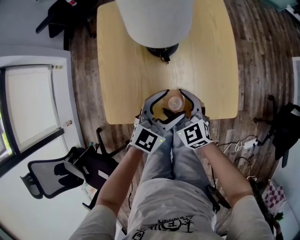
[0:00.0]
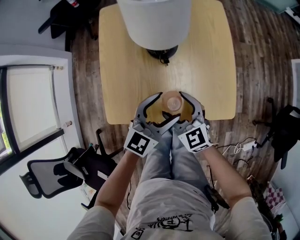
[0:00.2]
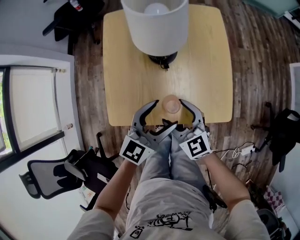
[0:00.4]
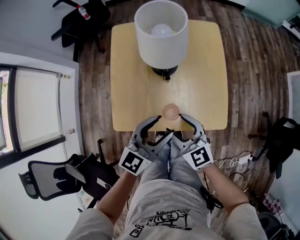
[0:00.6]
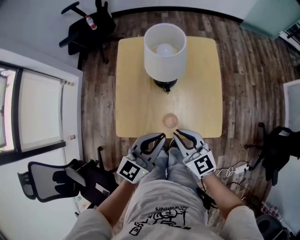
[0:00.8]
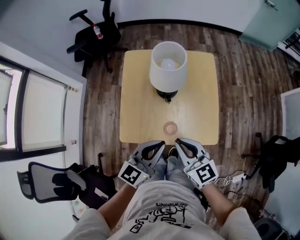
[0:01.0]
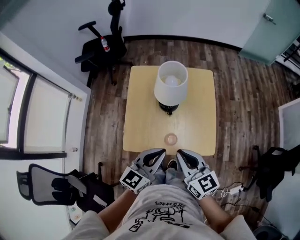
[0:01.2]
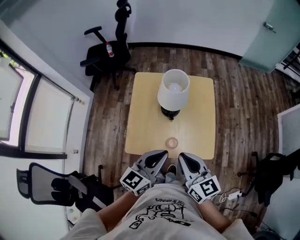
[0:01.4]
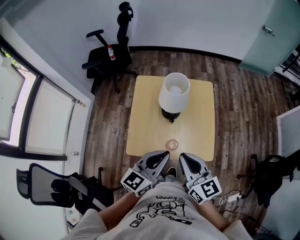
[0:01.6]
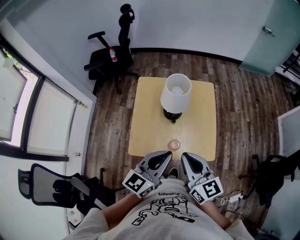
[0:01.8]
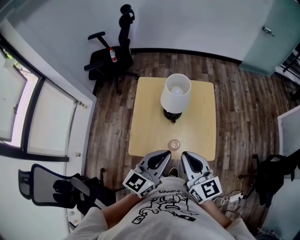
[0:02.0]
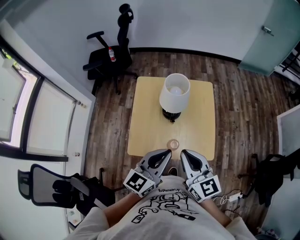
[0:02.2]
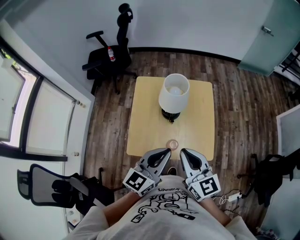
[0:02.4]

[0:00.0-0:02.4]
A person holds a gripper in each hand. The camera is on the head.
0:00.0 to 0:01.2: Both grippers move upward, approximately 25 cm. The left gripper turns by approximately 20 degrees, and closes. Meanwhile the right gripper turns by roughly 30 degrees, and closes its fingers.
0:01.2 to 0:02.4: Both grippers move upward, about 10 cm.

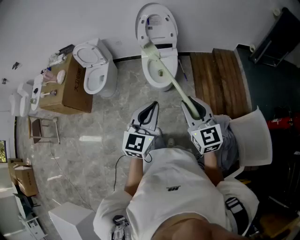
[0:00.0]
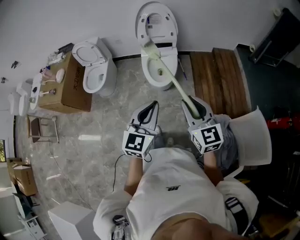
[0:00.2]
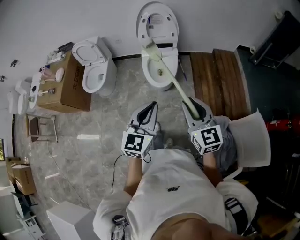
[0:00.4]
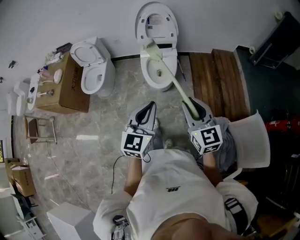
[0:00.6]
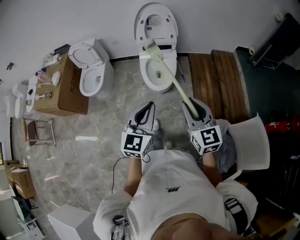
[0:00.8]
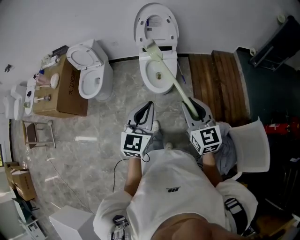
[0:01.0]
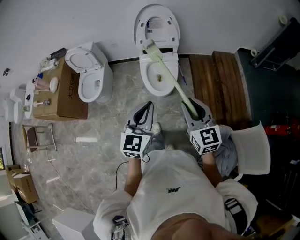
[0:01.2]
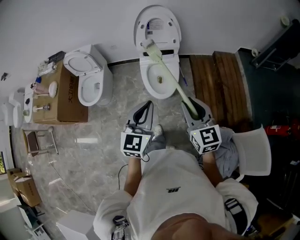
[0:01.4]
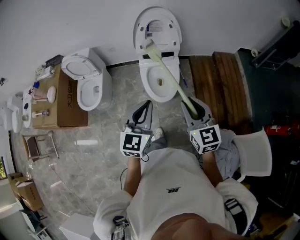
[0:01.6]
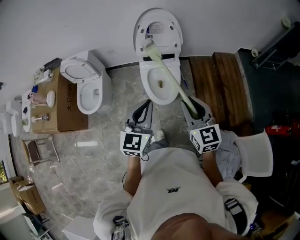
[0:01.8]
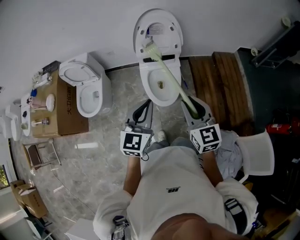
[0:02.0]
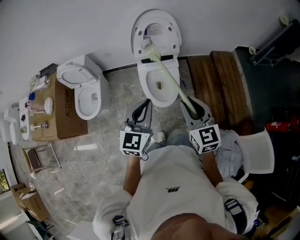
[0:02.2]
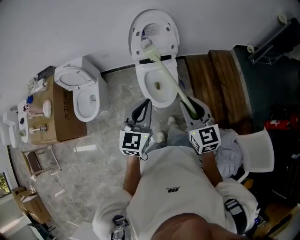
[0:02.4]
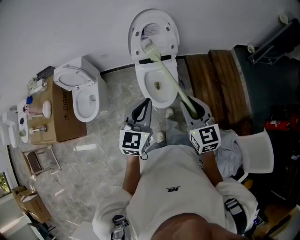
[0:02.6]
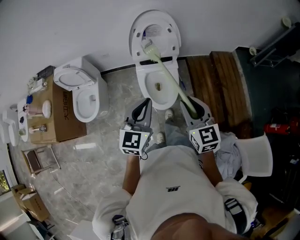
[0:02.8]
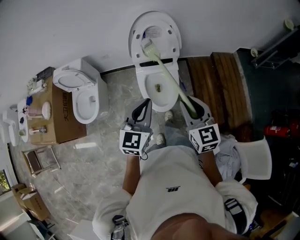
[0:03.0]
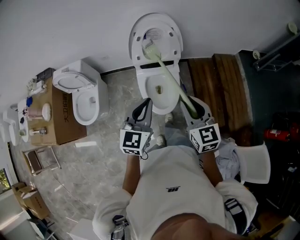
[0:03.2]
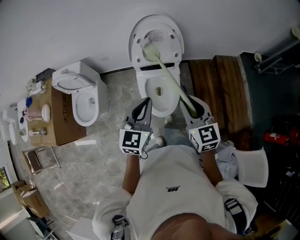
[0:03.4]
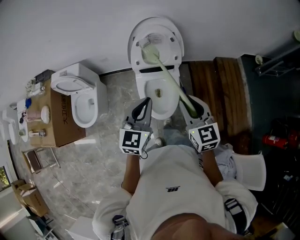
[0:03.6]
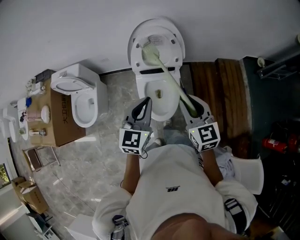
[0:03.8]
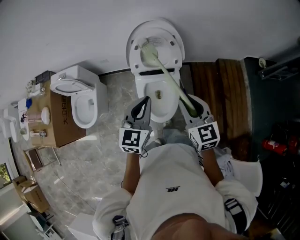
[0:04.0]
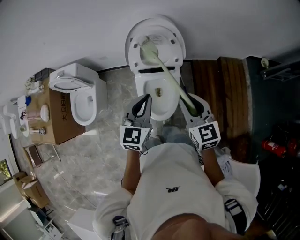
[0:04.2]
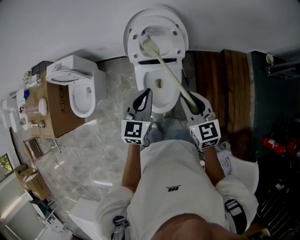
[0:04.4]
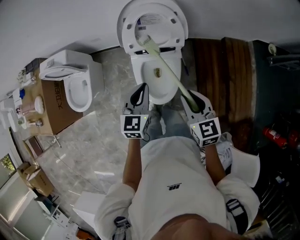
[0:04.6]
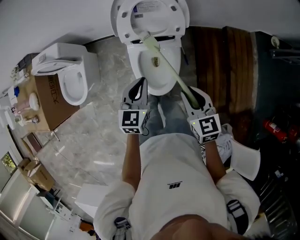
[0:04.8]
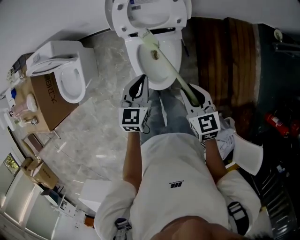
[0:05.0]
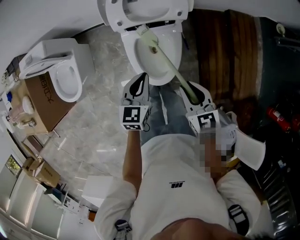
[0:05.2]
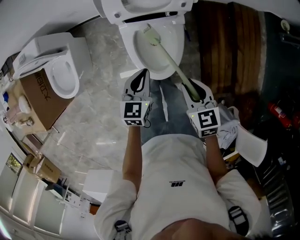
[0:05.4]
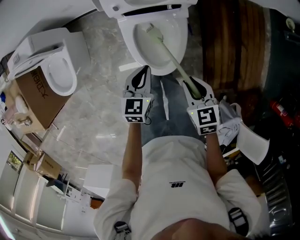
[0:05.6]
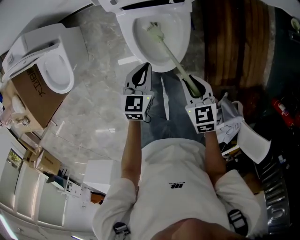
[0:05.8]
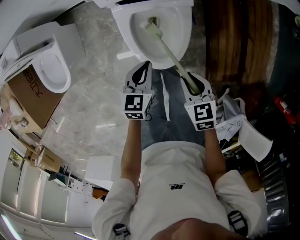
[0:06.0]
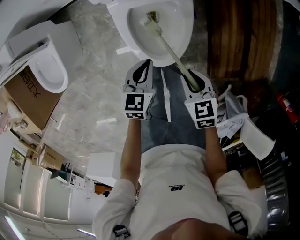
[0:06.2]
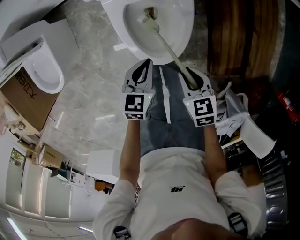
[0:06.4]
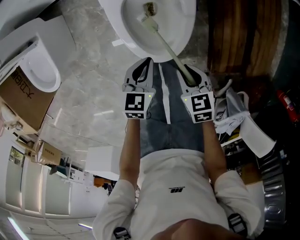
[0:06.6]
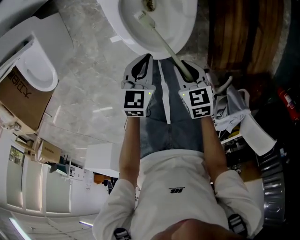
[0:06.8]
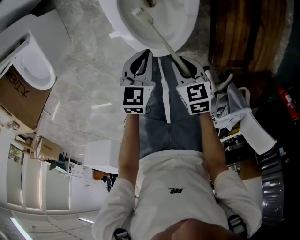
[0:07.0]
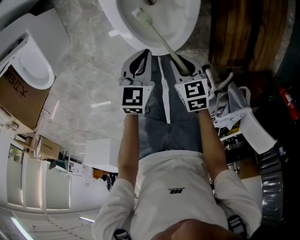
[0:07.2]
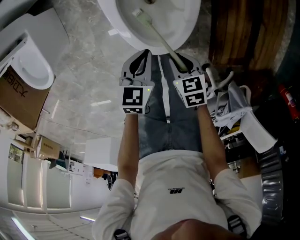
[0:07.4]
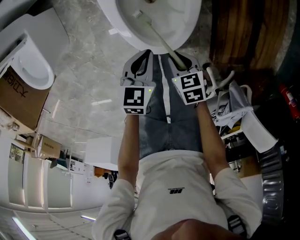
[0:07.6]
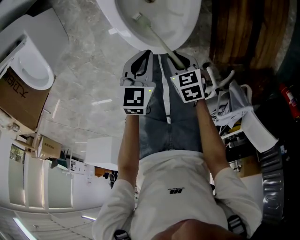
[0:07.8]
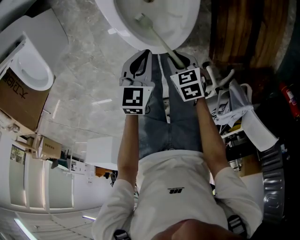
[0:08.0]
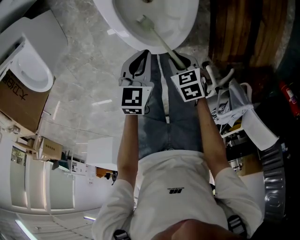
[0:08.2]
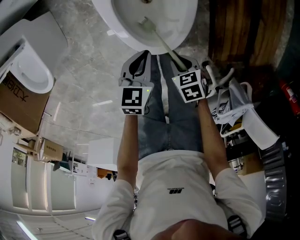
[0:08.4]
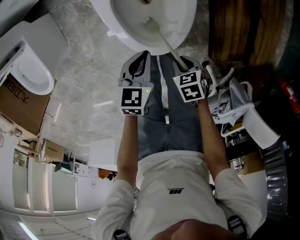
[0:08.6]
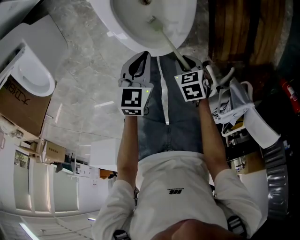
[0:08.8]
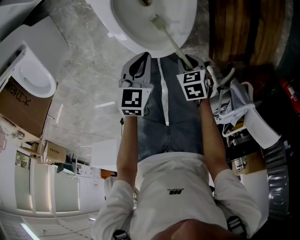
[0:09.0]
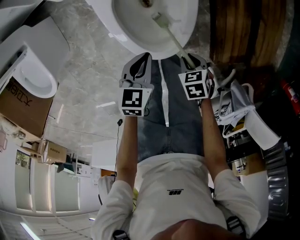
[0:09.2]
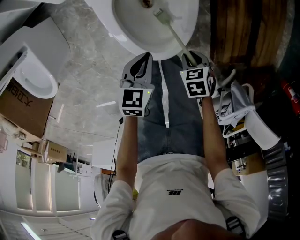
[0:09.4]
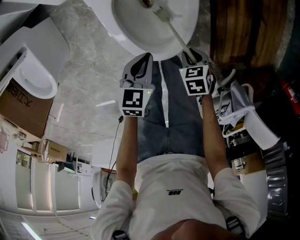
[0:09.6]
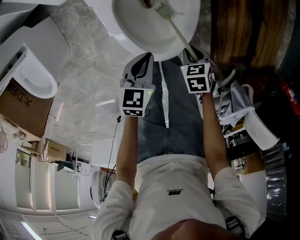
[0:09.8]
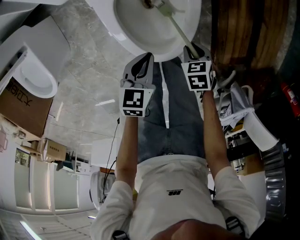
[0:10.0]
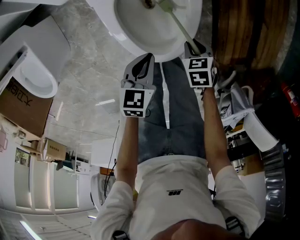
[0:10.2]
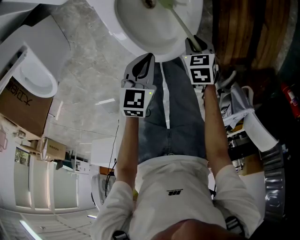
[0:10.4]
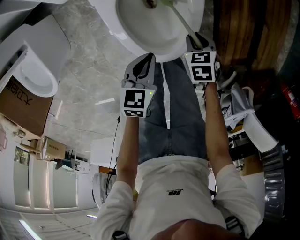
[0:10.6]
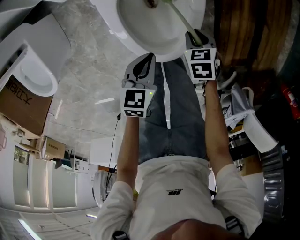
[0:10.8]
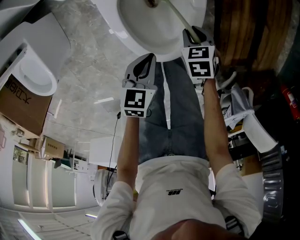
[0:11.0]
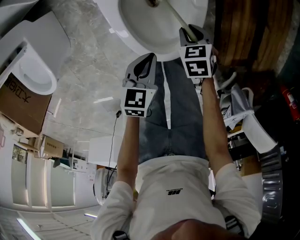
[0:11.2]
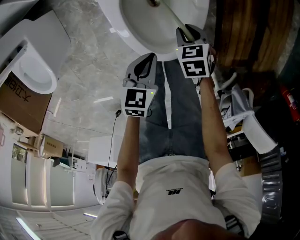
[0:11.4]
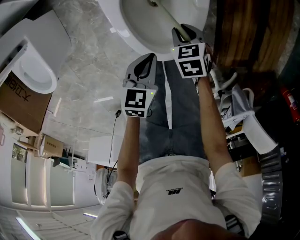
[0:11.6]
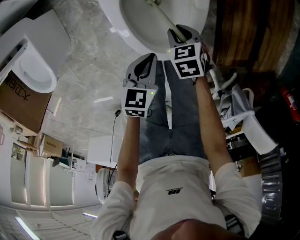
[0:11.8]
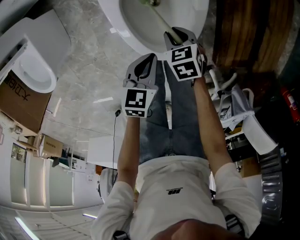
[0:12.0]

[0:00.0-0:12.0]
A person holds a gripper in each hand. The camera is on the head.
0:00.0 to 0:01.6: The right gripper moves forward, approximately 25 cm. Meanwhile the left gripper goes about 25 cm forward and to the left.
0:01.6 to 0:03.0: Both grippers move forward, about 15 cm.
0:03.0 to 0:04.4: The grippers both shift forward by roughly 20 cm.
0:04.4 to 0:06.0: The grippers both shift downward by roughly 35 cm. The right gripper tilts its fingers approximately 30 degrees downward. Meanwhile the left gripper changes its angle by some 30 degrees.
0:06.0 to 0:07.6: The left gripper moves downward, about 10 cm, while the right gripper shifts approximately 20 cm downward.
0:07.6 to 0:09.0: The right gripper moves roughly 5 cm.
0:09.0 to 0:10.4: The right gripper changes place by approximately 10 cm.
0:10.4 to 0:12.0: The right gripper ends up some 10 cm from where it was.

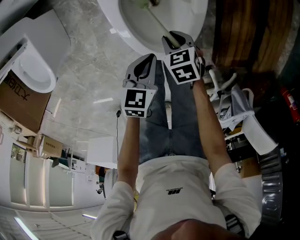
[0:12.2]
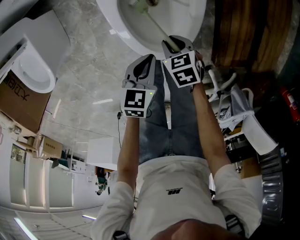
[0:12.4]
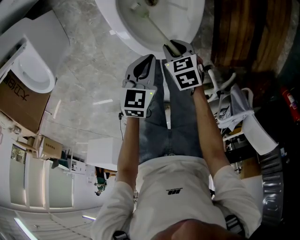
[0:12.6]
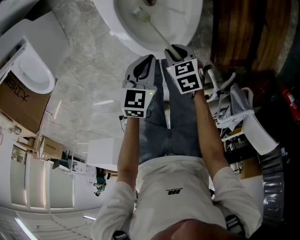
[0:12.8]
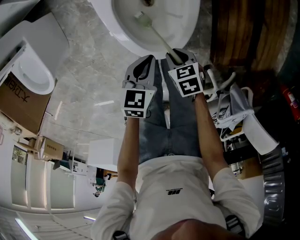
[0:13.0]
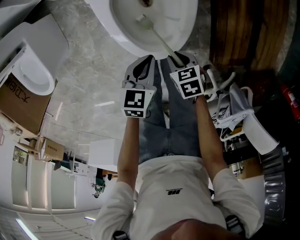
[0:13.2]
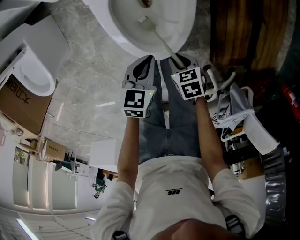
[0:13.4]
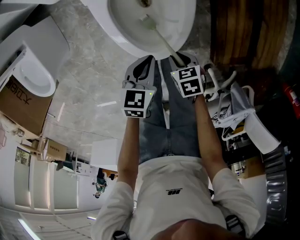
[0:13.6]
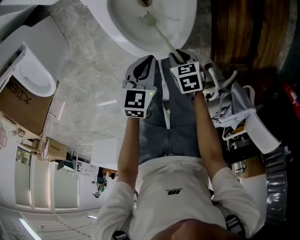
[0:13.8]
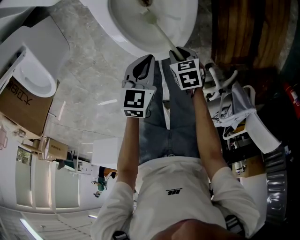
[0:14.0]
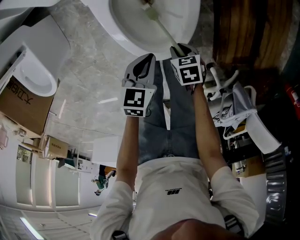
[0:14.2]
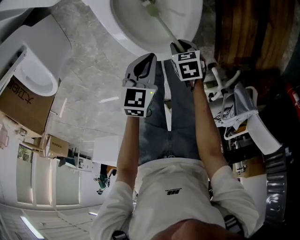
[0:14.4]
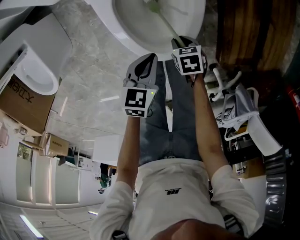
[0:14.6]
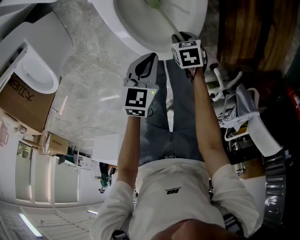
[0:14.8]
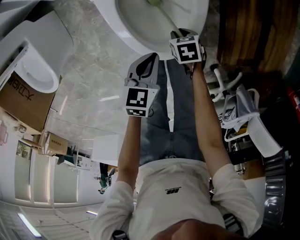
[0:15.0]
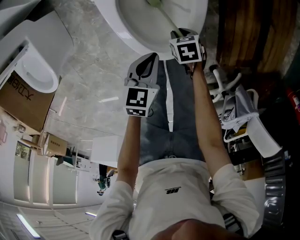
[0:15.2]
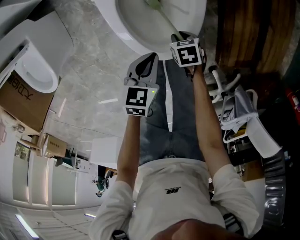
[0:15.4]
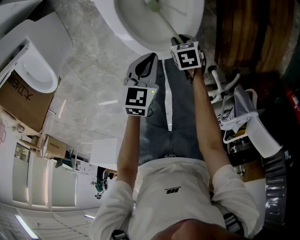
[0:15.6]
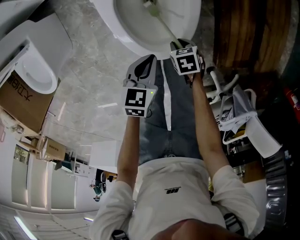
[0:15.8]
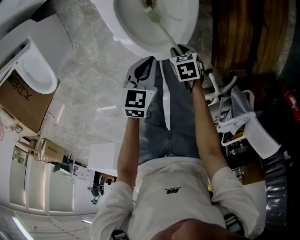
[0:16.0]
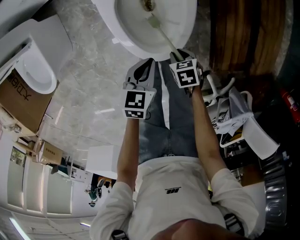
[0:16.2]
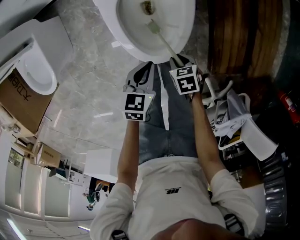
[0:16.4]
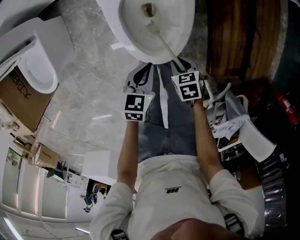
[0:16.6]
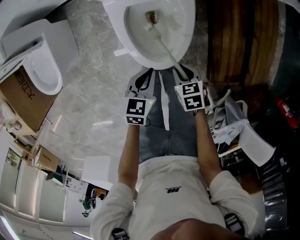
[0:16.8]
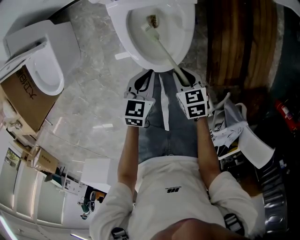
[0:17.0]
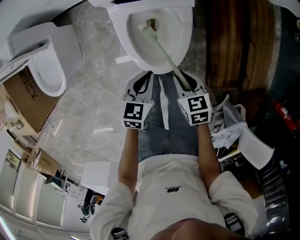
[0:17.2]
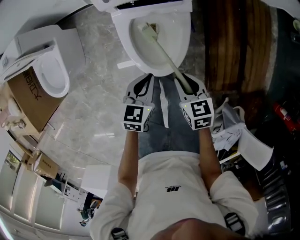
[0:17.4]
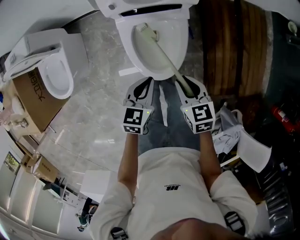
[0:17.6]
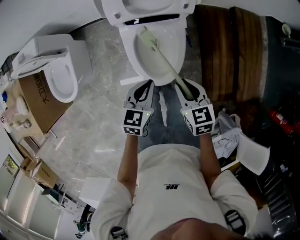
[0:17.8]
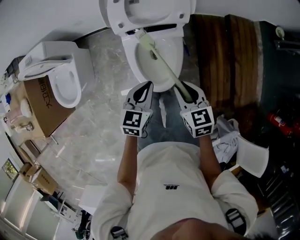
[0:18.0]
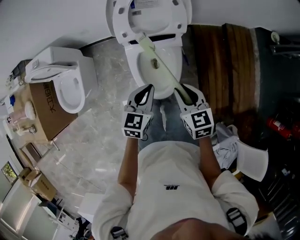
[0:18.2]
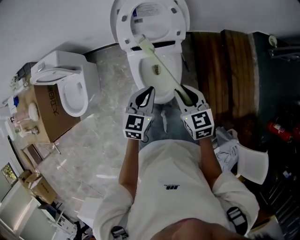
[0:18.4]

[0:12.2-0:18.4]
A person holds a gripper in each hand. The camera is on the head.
0:12.2 to 0:13.8: The right gripper ends up about 10 cm from where it was.
0:13.8 to 0:15.4: The right gripper shifts some 5 cm downward.
0:15.4 to 0:16.8: The right gripper travels upward by about 15 cm; the left gripper heads upward, covering about 10 cm.
0:16.8 to 0:18.4: Both grippers move upward, some 35 cm. The left gripper turns by approximately 20 degrees. Meanwhile the right gripper tips its fingers upward by some 30 degrees.

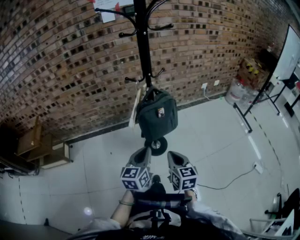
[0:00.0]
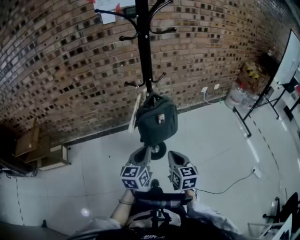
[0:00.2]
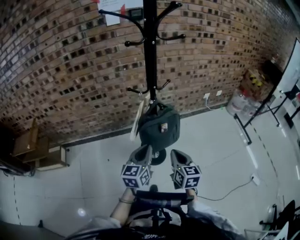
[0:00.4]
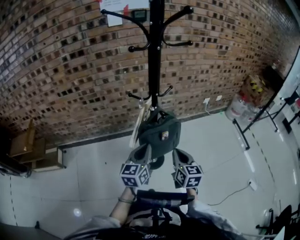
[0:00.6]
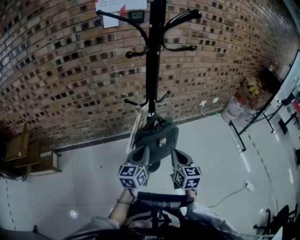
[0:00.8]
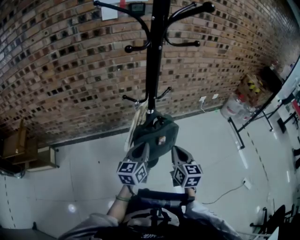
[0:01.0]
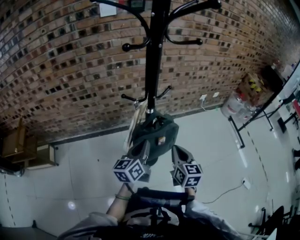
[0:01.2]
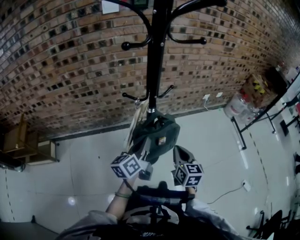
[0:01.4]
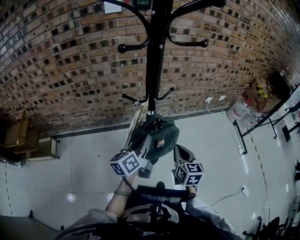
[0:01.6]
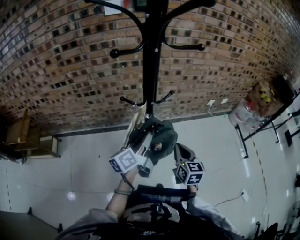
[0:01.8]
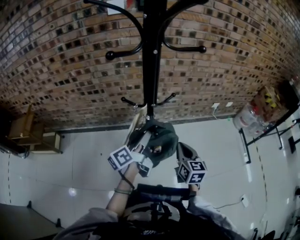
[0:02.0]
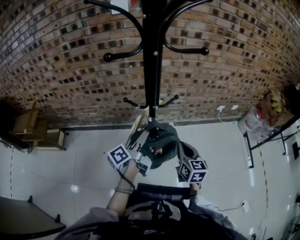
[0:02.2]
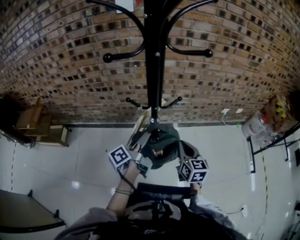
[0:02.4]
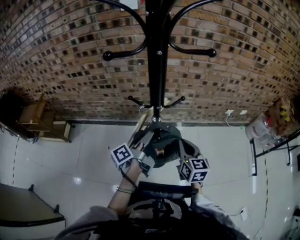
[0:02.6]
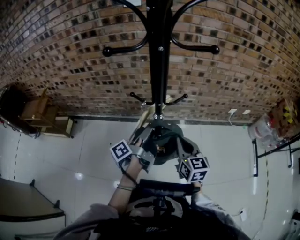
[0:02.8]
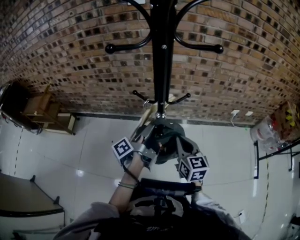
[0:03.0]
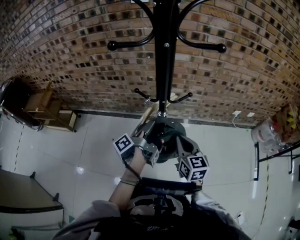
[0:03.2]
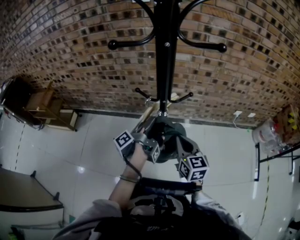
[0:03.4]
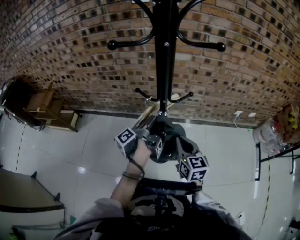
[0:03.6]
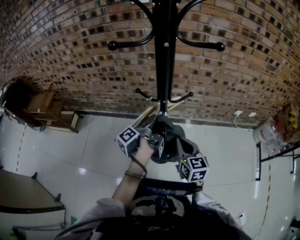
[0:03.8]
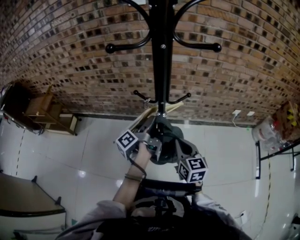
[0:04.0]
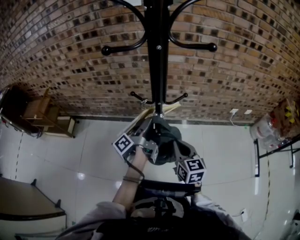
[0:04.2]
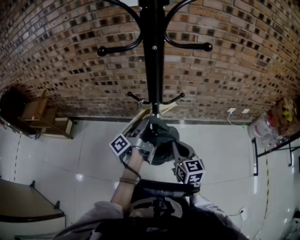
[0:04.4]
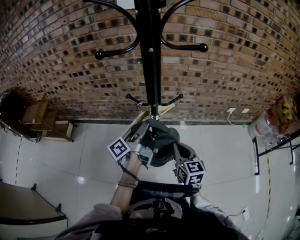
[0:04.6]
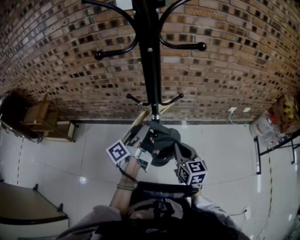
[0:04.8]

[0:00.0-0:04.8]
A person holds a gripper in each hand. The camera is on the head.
0:00.0 to 0:01.6: The right gripper changes place by about 25 cm.
0:01.6 to 0:03.2: The right gripper changes place by some 10 cm, and turns by about 20 degrees.
